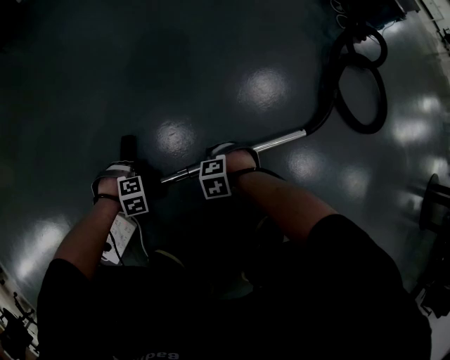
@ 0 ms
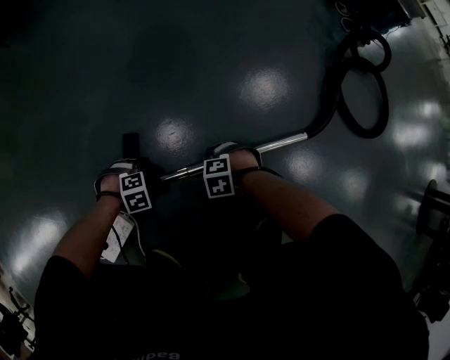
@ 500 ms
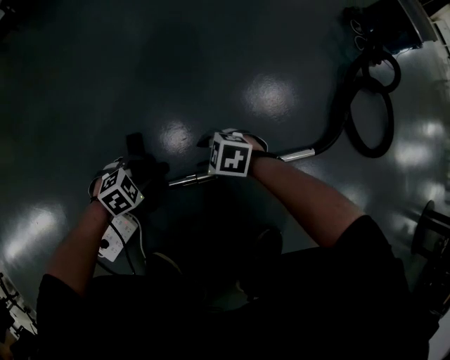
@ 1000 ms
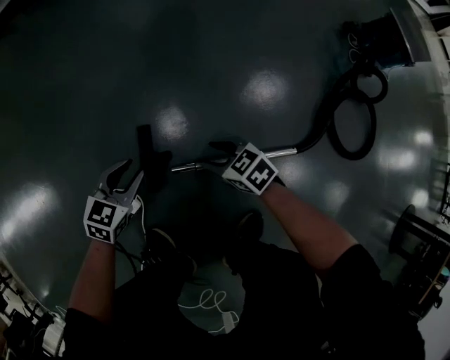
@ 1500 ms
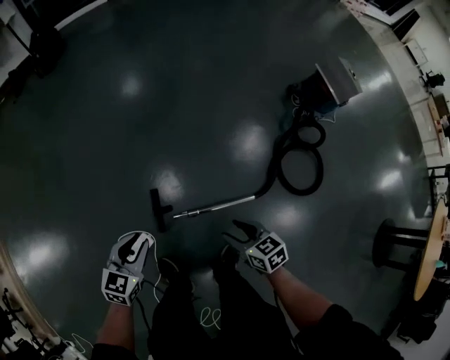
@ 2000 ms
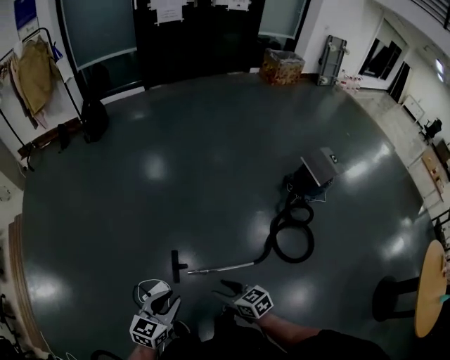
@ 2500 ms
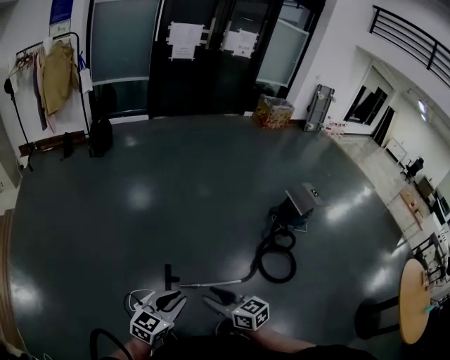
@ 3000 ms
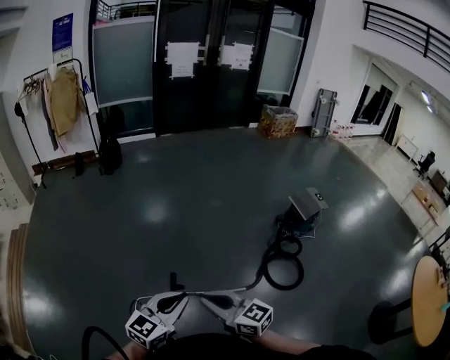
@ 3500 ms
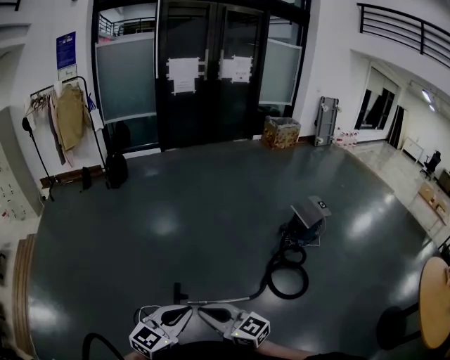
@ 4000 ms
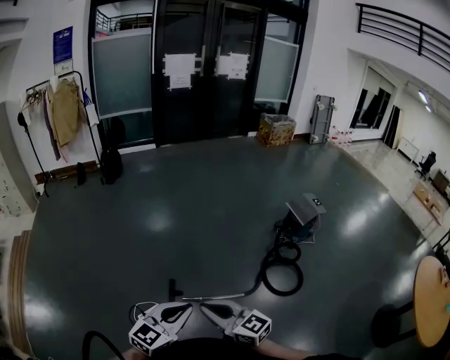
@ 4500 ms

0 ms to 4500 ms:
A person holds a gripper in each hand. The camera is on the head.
0 ms to 2000 ms: The two grippers go some 60 cm upward. The right gripper tilts its fingers approximately 40 degrees upward, while the left gripper tips its fingers upward by roughly 50 degrees.
2000 ms to 4500 ms: Both grippers move upward and backward, some 50 cm. The right gripper tilts its fingers roughly 40 degrees upward, and closes; the left gripper turns by roughly 30 degrees, and closes.

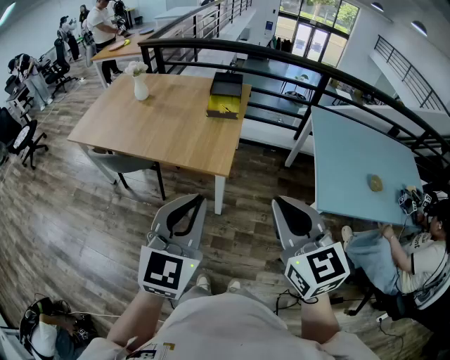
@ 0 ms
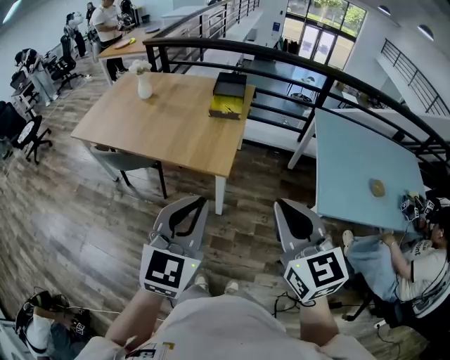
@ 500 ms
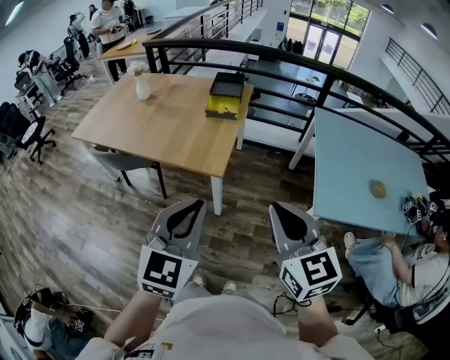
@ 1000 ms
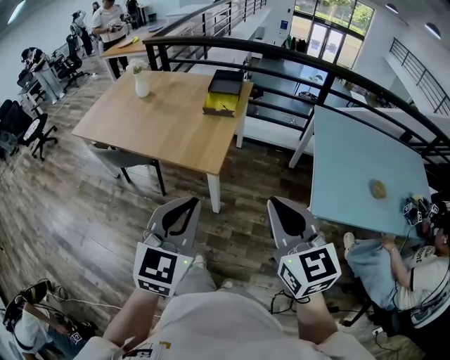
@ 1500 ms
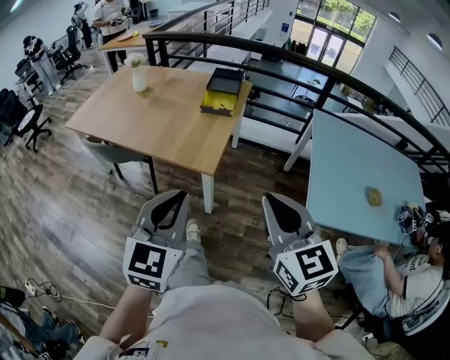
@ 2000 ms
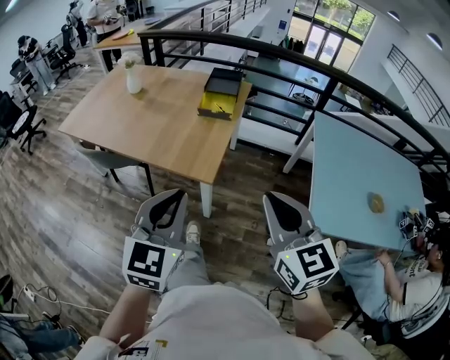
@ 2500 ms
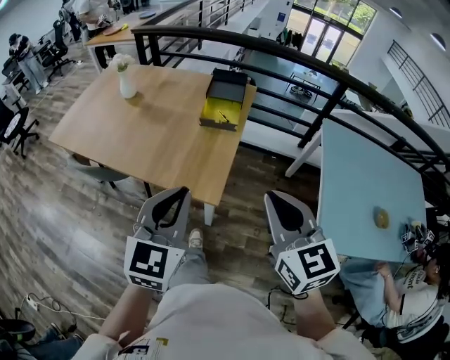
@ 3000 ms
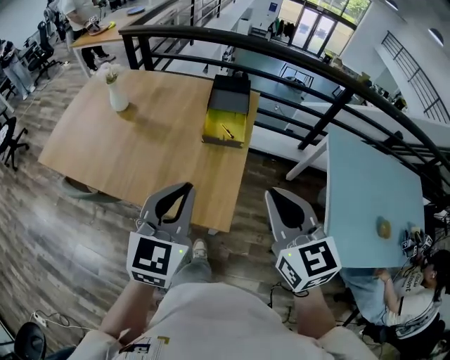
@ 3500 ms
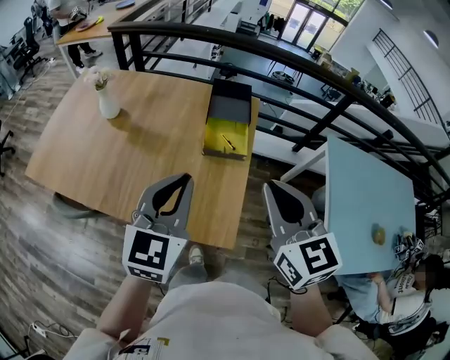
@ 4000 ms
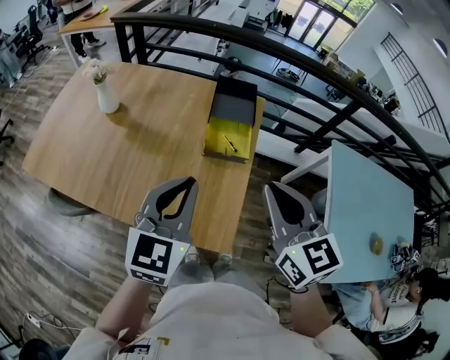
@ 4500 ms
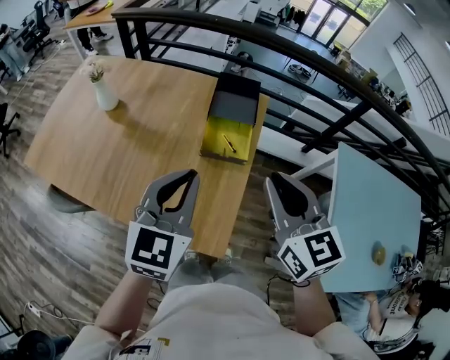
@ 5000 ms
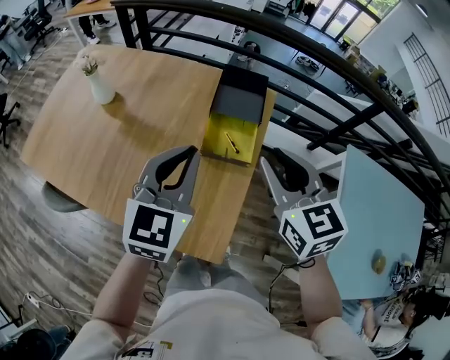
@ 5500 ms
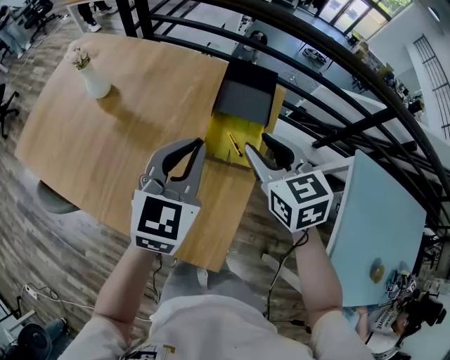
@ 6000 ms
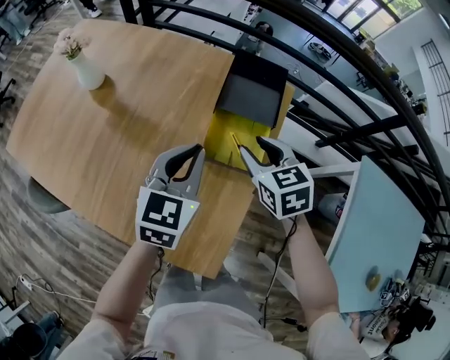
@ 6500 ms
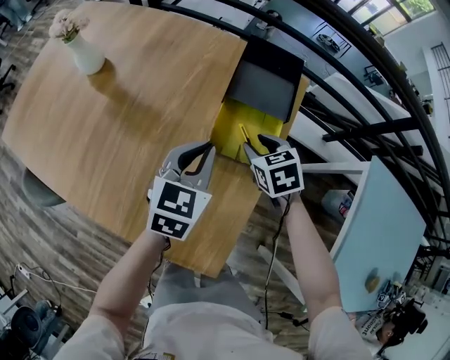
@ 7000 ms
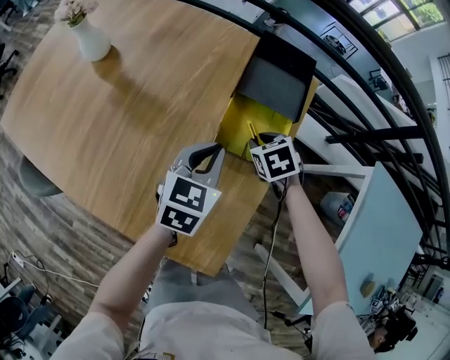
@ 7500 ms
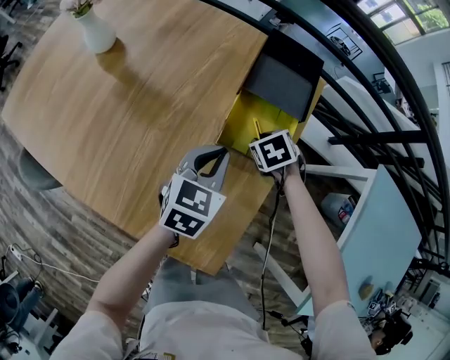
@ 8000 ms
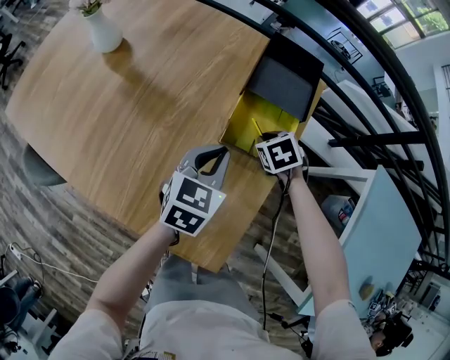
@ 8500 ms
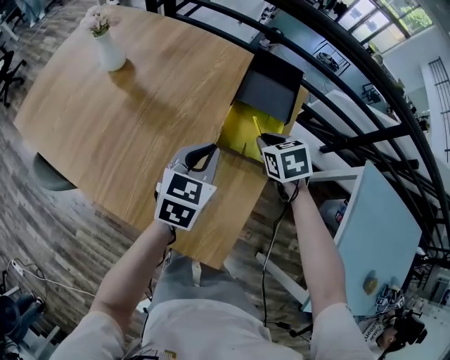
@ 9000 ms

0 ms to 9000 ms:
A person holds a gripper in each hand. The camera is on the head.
0 ms to 2000 ms: The two grippers go approximately 5 cm to the right.
2000 ms to 4500 ms: The two grippers travel together, forward, about 50 cm.
4500 ms to 7000 ms: The two grippers go about 40 cm downward and forward. The left gripper changes its angle by approximately 20 degrees, while the right gripper tilts its fingers about 40 degrees downward, and opens up.
7000 ms to 9000 ms: The right gripper is displaced upward by some 5 cm, and closes. Meanwhile the left gripper travels downward and back again, about 5 cm each way.

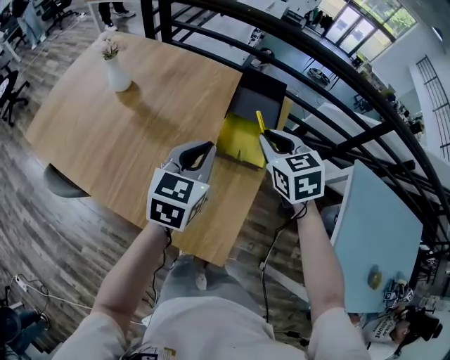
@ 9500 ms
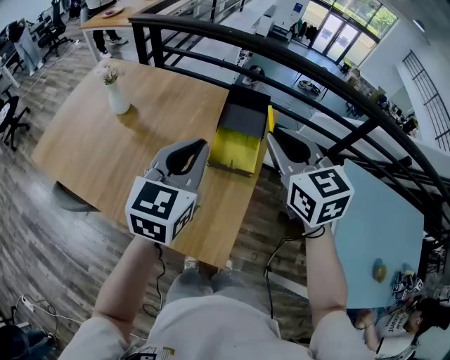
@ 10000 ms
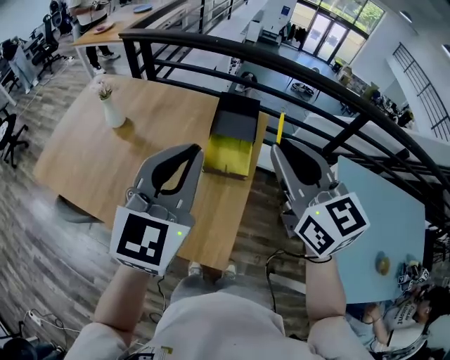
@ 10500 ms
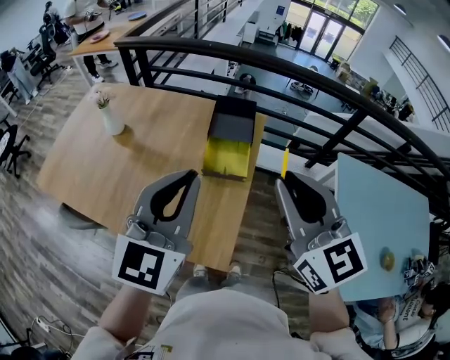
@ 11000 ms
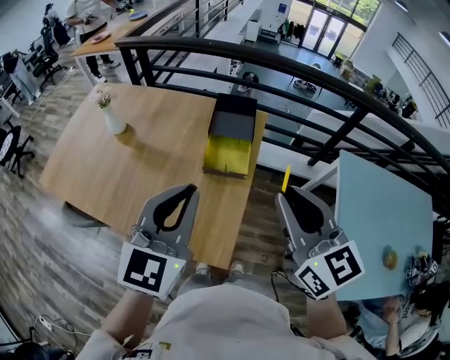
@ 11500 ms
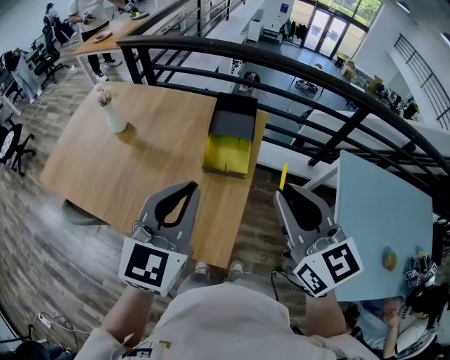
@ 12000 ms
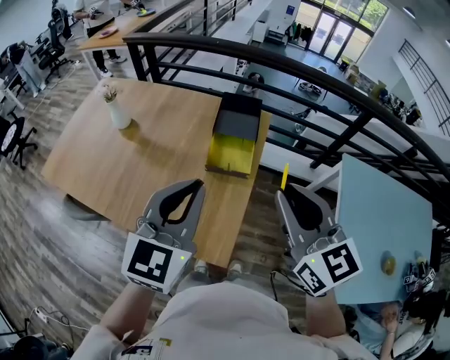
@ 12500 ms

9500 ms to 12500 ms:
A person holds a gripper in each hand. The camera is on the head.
9500 ms to 11000 ms: The grippers both shift upward and backward by approximately 30 cm. The left gripper turns by about 20 degrees. The right gripper tips its fingers upward by some 30 degrees.
11000 ms to 12500 ms: There are only small adjustments of the grippers.

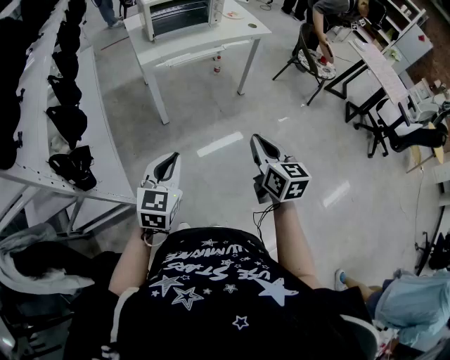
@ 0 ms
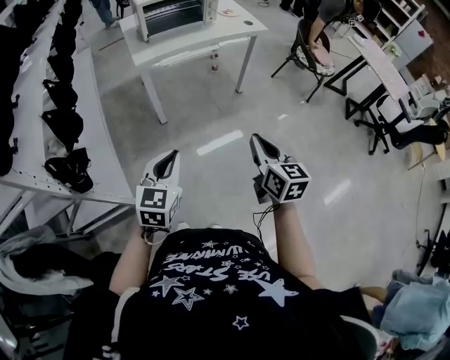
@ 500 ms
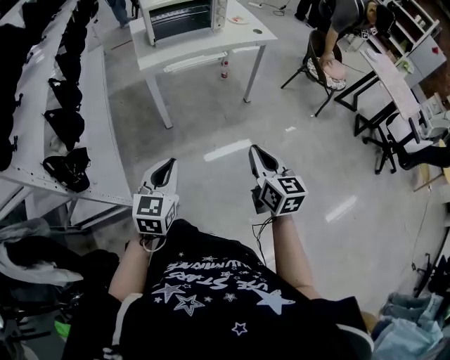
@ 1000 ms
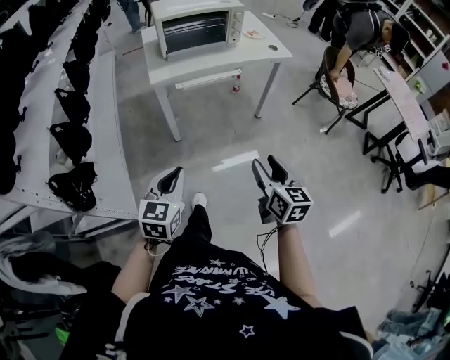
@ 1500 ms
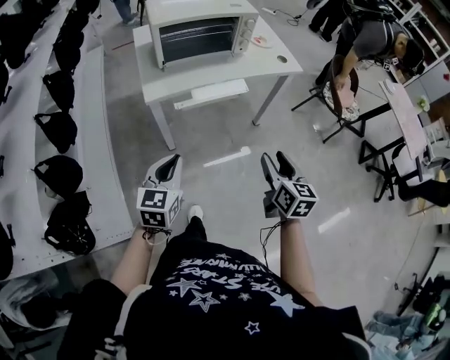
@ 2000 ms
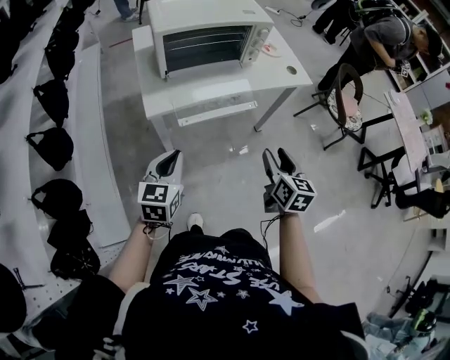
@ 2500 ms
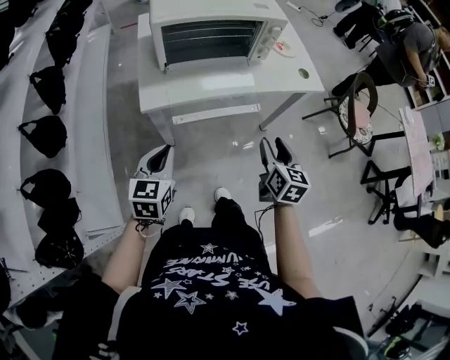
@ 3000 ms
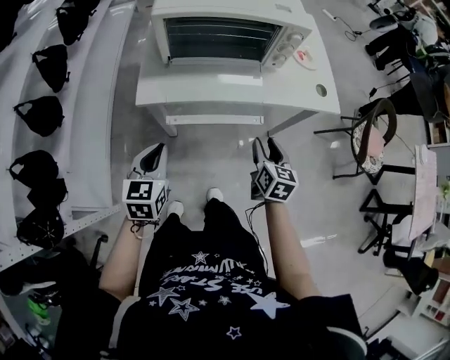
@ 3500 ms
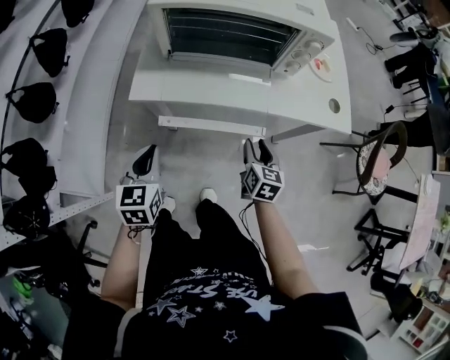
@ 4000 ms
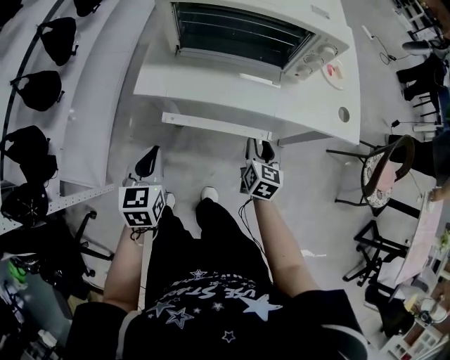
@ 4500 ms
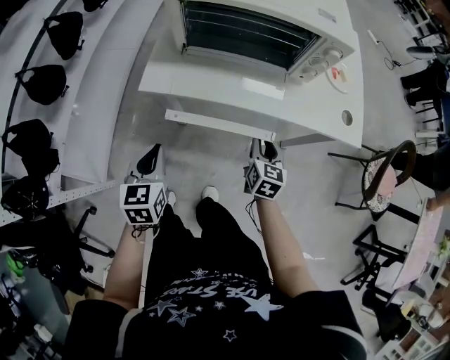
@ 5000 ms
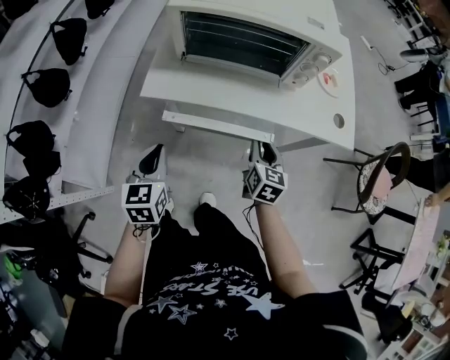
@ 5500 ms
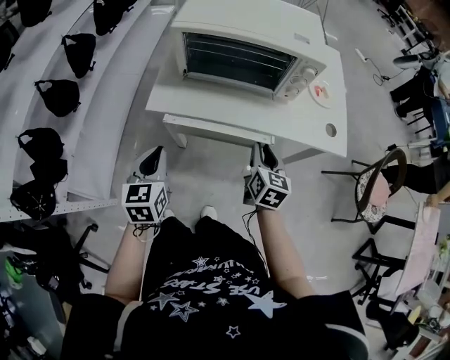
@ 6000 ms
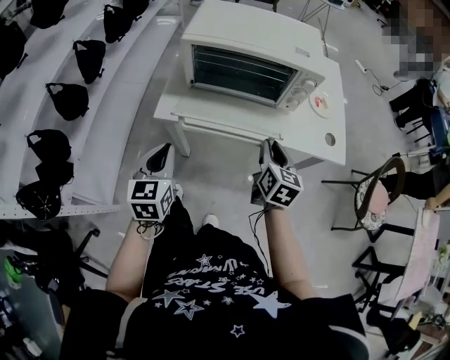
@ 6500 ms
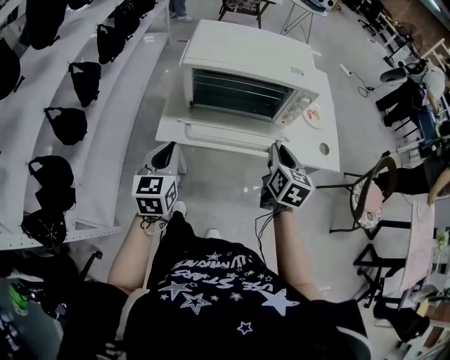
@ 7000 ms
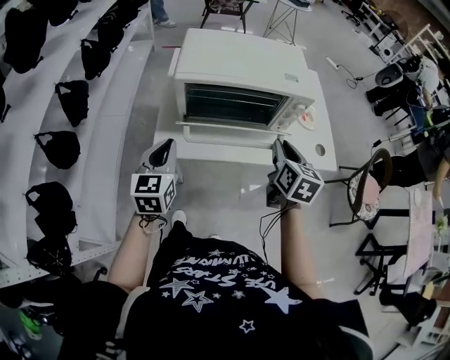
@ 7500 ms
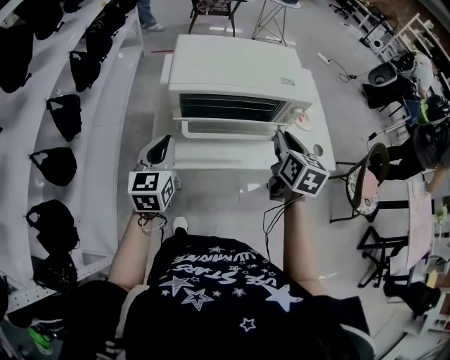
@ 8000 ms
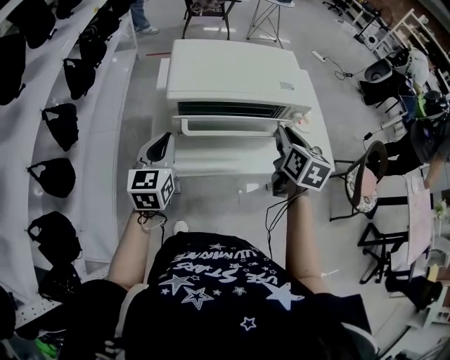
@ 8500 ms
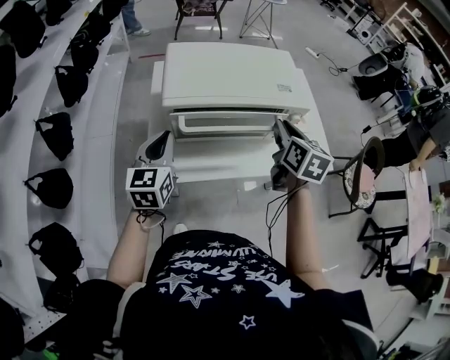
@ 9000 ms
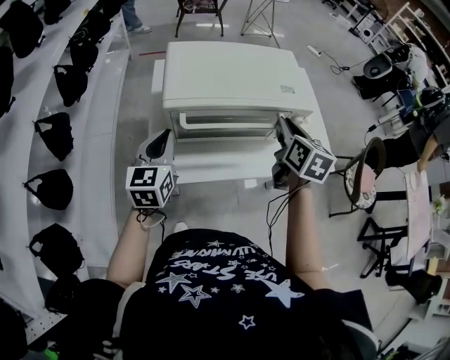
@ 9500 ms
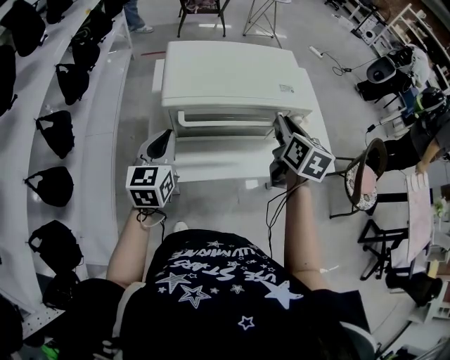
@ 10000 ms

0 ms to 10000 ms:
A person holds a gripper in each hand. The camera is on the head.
0 ms to 2000 ms: Both grippers move forward, about 30 cm. The right gripper opens its fingers.
2000 ms to 4000 ms: The right gripper ends up about 35 cm from where it was, and turns by roughly 20 degrees; the left gripper shifts by roughly 20 cm, and rotates roughly 30 degrees.
4000 ms to 6000 ms: The right gripper shifts approximately 10 cm upward. The left gripper shifts roughly 5 cm upward.
6000 ms to 8000 ms: The left gripper shifts some 20 cm forward and upward, while the right gripper heads upward and forward, covering about 20 cm.
8000 ms to 10000 ms: The grippers both shift forward by about 5 cm.
